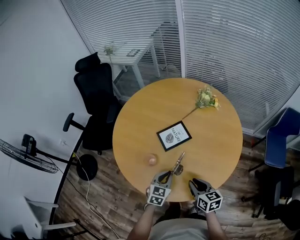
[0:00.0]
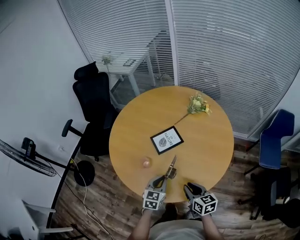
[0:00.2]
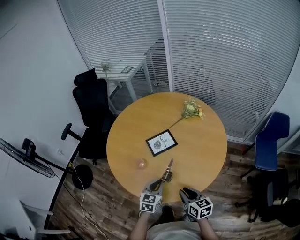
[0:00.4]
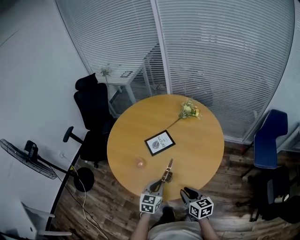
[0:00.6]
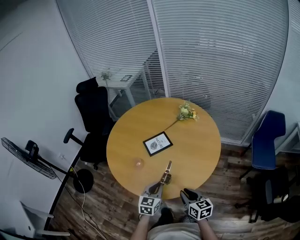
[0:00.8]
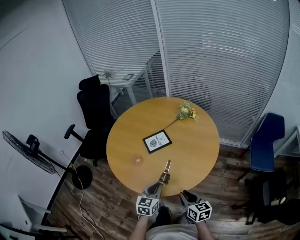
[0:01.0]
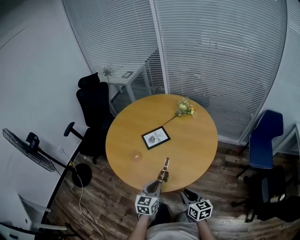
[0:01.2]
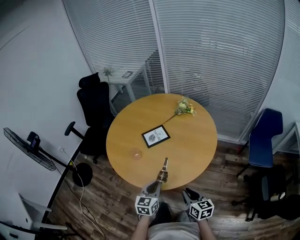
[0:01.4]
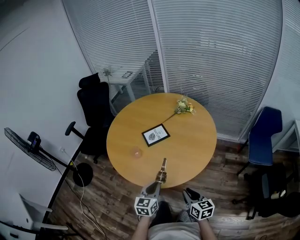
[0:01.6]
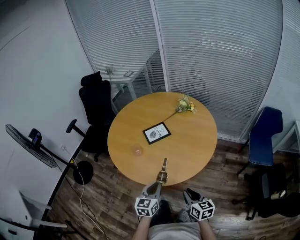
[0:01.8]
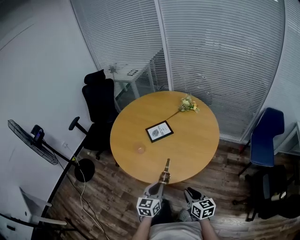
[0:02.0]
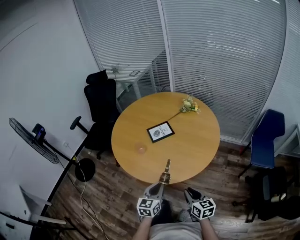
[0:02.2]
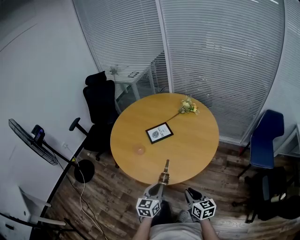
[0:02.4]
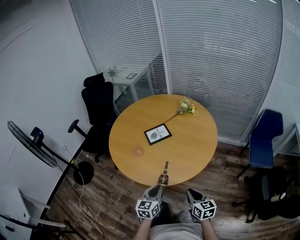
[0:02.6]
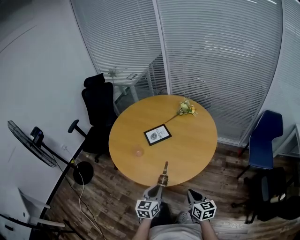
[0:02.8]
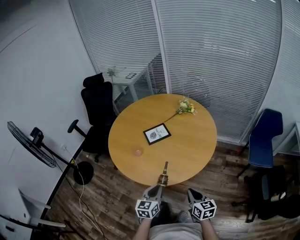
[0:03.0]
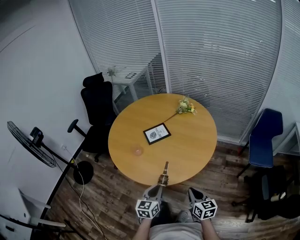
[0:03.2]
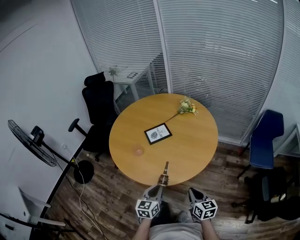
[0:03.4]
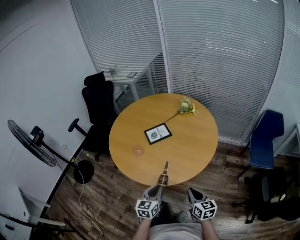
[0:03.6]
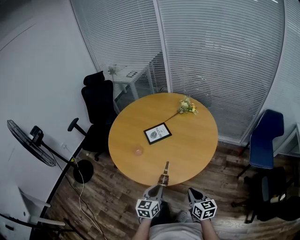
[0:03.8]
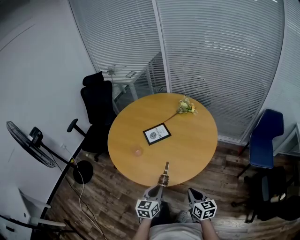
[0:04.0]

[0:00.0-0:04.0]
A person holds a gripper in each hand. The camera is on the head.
0:00.0 to 0:01.4: The left gripper moves backward and upward, roughly 20 cm; the right gripper goes some 20 cm backward and to the right.
0:01.4 to 0:02.6: The left gripper heads backward, covering approximately 5 cm.
0:02.6 to 0:04.0: The grippers move only a little.

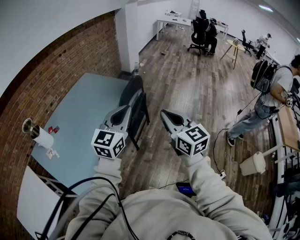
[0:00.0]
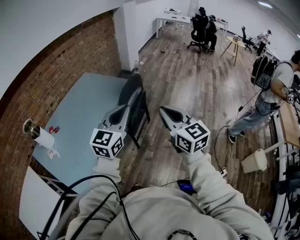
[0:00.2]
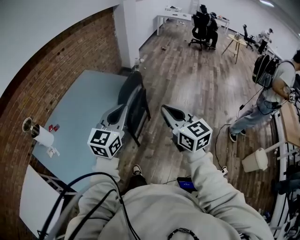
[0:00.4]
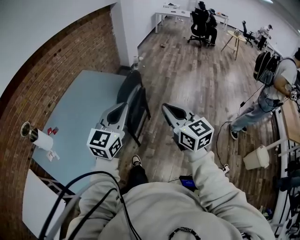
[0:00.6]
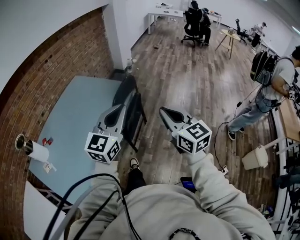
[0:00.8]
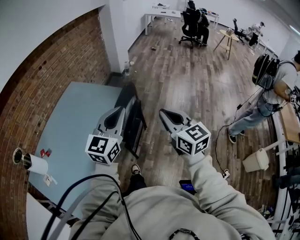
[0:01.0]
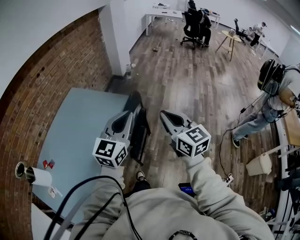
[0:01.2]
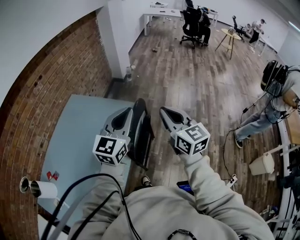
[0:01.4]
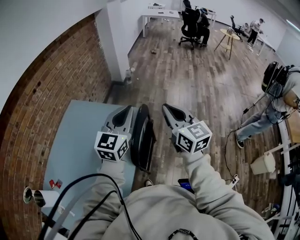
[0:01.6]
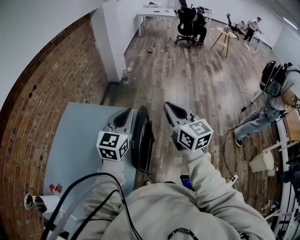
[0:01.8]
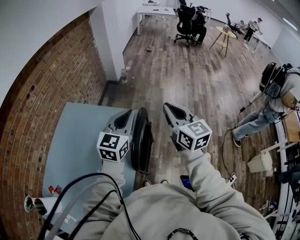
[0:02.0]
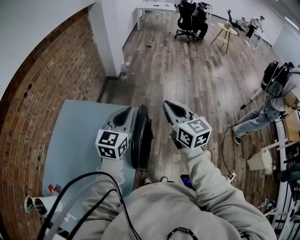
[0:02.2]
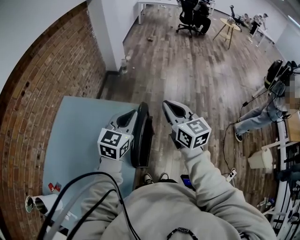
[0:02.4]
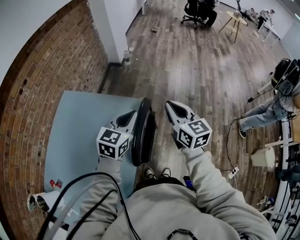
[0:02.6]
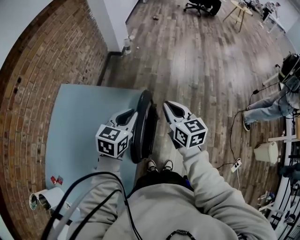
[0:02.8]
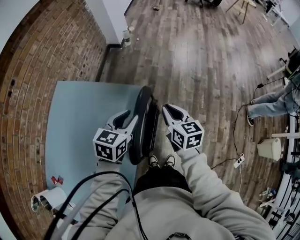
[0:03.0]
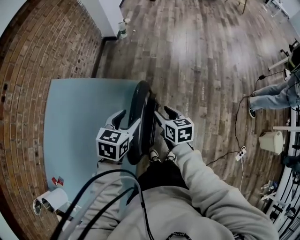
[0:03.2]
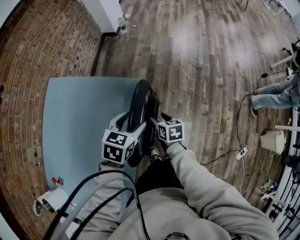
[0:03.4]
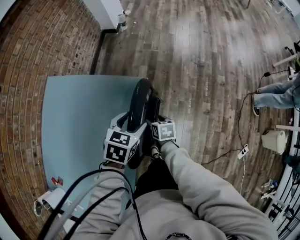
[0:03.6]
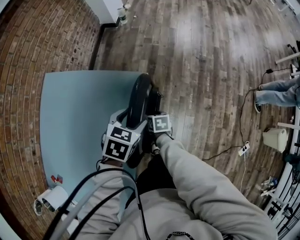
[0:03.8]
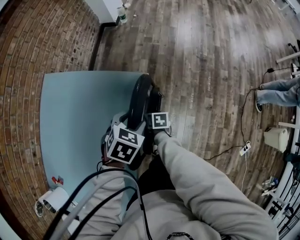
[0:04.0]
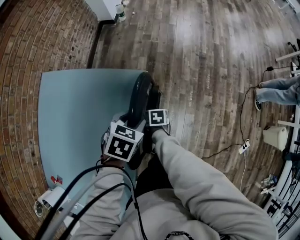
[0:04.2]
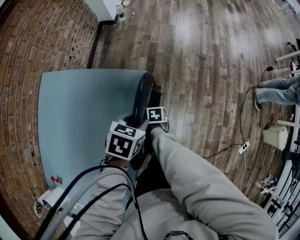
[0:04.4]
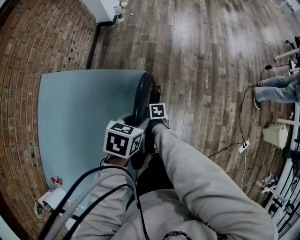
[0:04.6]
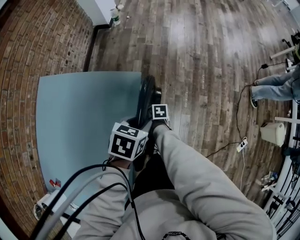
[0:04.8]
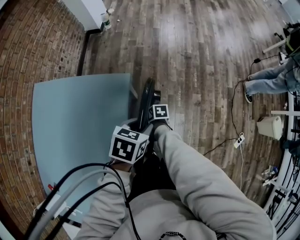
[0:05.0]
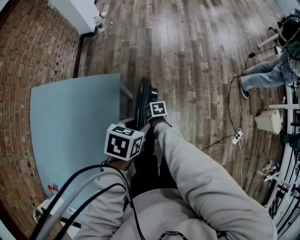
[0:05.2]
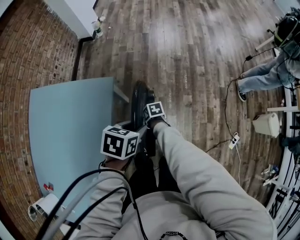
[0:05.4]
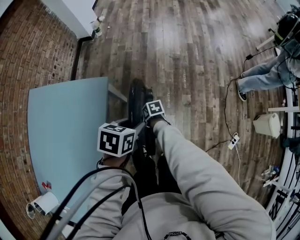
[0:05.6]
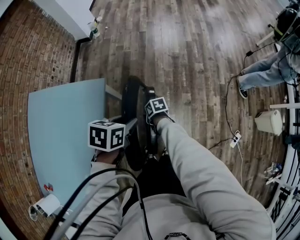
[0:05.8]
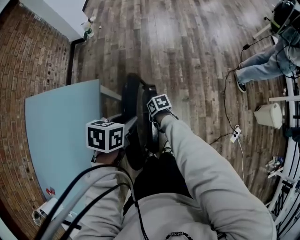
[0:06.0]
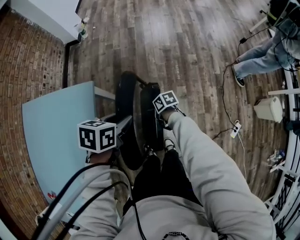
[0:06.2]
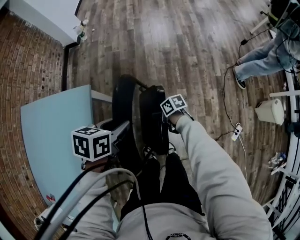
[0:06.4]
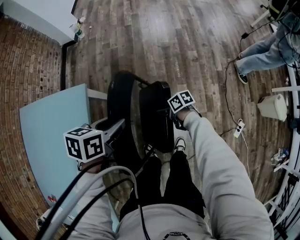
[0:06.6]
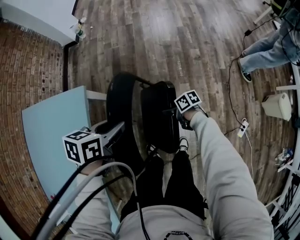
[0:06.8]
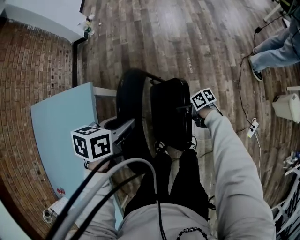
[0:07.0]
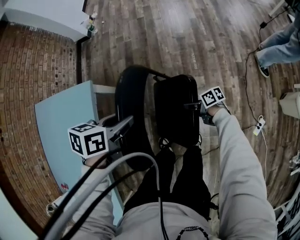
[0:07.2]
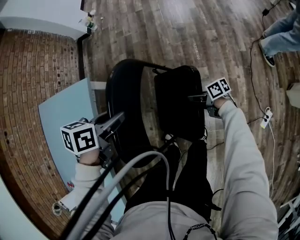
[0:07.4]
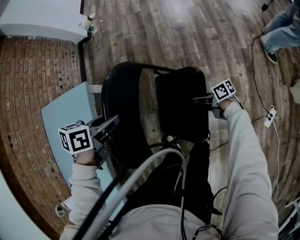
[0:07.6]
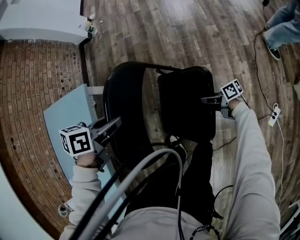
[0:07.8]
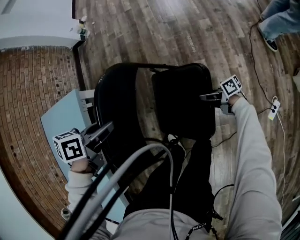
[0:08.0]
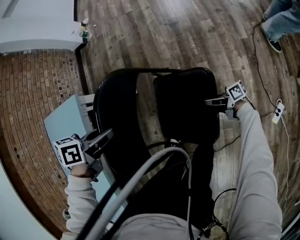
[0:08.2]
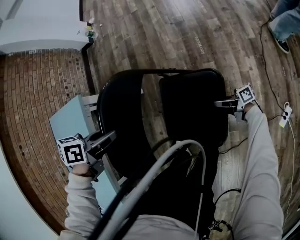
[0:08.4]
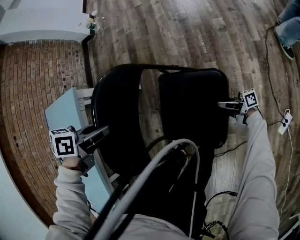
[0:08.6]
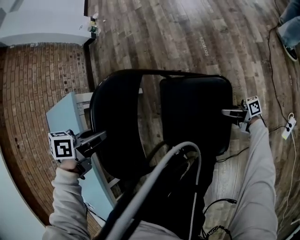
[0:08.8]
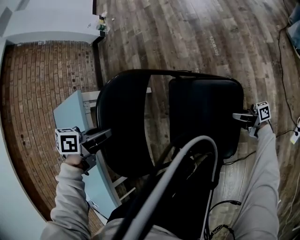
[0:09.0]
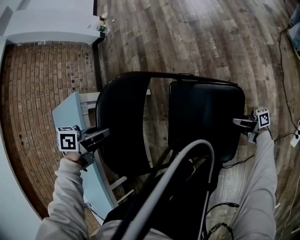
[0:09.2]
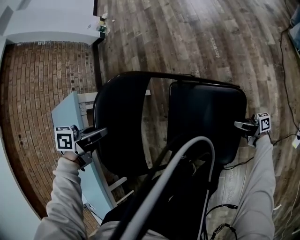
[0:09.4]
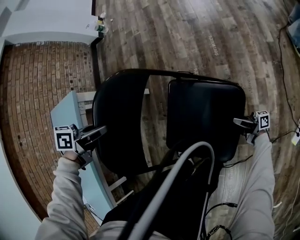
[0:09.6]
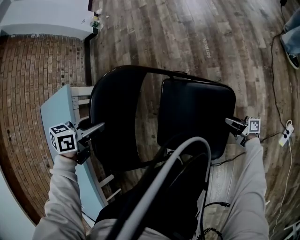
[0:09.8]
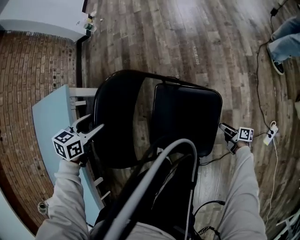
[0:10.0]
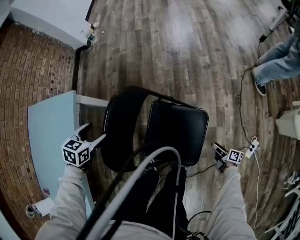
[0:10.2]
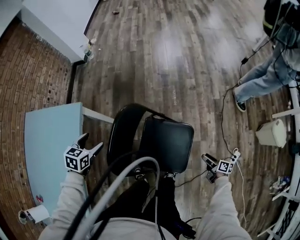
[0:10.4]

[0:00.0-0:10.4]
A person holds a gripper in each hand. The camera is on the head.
0:00.0 to 0:01.4: Both grippers travel together forward, roughly 35 cm.
0:01.4 to 0:03.0: The two grippers go approximately 30 cm downward and forward. The left gripper tilts its fingers some 30 degrees downward. Meanwhile the right gripper swivels roughly 30 degrees.
0:03.0 to 0:04.4: The left gripper is displaced downward by approximately 15 cm, turns by some 30 degrees, and opens, then closes again; the right gripper moves downward, approximately 35 cm, tips its fingers downward by about 40 degrees, and opens its fingers.
0:04.4 to 0:06.0: The left gripper shifts by some 20 cm; the right gripper ends up about 20 cm from where it was, and closes its fingers.
0:06.0 to 0:07.4: The left gripper changes place by some 10 cm; the right gripper ends up roughly 25 cm from where it was, and points its fingers approximately 30 degrees further upward.
0:07.4 to 0:09.0: The two grippers go roughly 15 cm downward. The right gripper points its fingers roughly 30 degrees further upward.
0:09.0 to 0:10.4: The right gripper heads upward, covering some 20 cm, points its fingers approximately 40 degrees further downward, and opens; the left gripper shifts by about 15 cm, changes its angle by approximately 40 degrees, and opens its fingers.

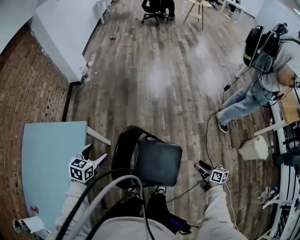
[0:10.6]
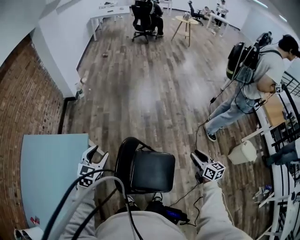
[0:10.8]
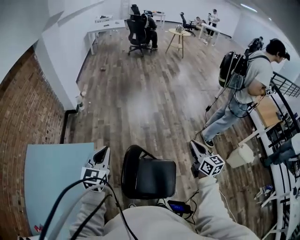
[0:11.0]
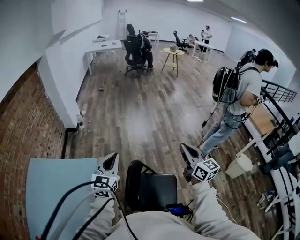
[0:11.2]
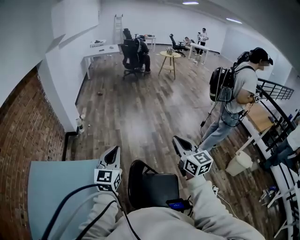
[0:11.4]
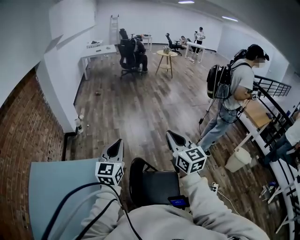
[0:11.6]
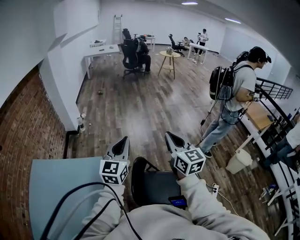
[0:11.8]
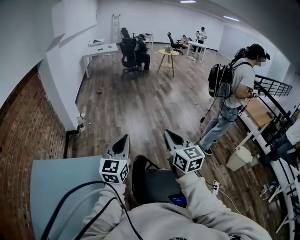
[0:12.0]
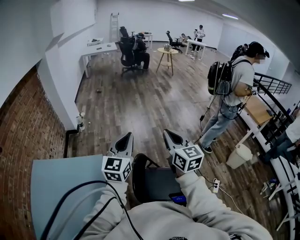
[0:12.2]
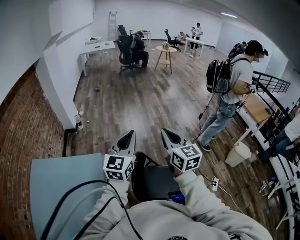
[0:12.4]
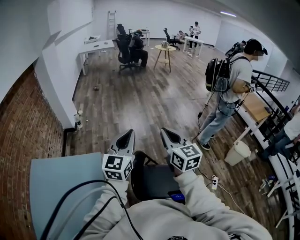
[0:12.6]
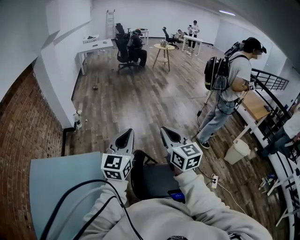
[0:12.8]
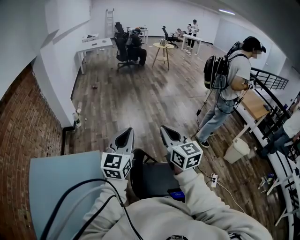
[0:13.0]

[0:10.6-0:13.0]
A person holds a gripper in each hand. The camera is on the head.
0:10.6 to 0:11.8: The left gripper shifts some 35 cm upward, points its fingers some 50 degrees further upward, and closes. Meanwhile the right gripper moves upward and to the left, approximately 60 cm, rotates some 60 degrees, and closes up.
0:11.8 to 0:13.0: There are only small adjustments of the grippers.

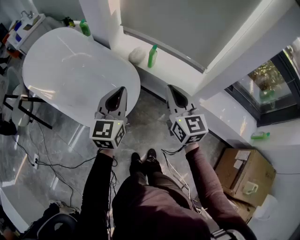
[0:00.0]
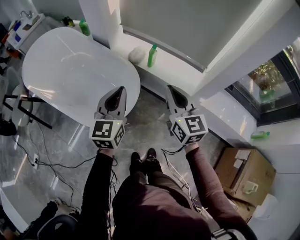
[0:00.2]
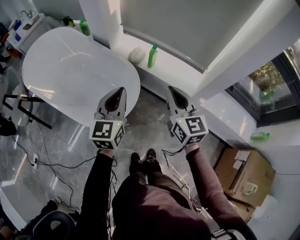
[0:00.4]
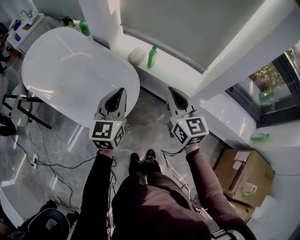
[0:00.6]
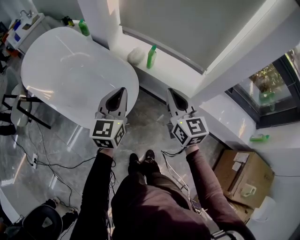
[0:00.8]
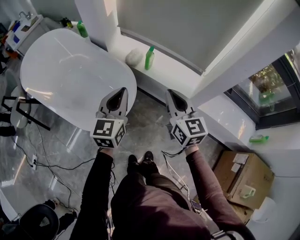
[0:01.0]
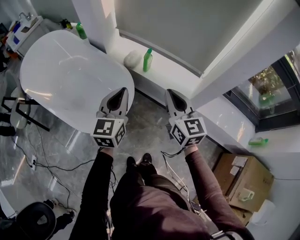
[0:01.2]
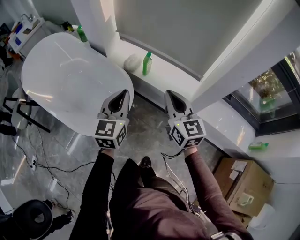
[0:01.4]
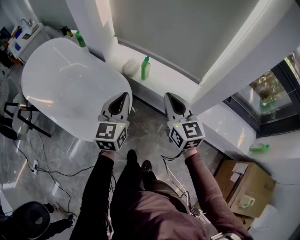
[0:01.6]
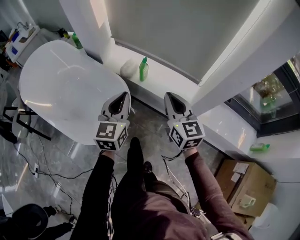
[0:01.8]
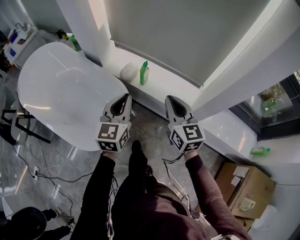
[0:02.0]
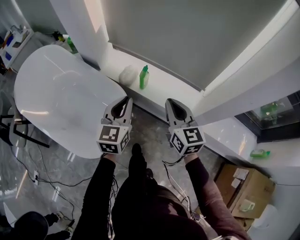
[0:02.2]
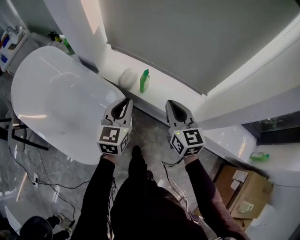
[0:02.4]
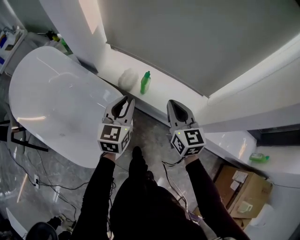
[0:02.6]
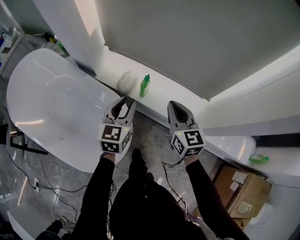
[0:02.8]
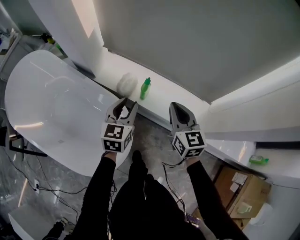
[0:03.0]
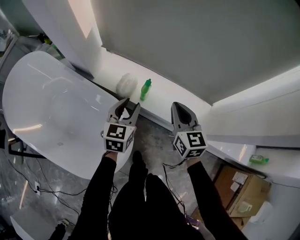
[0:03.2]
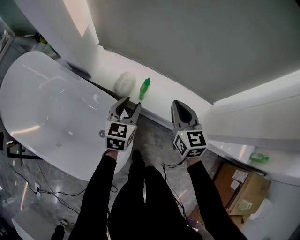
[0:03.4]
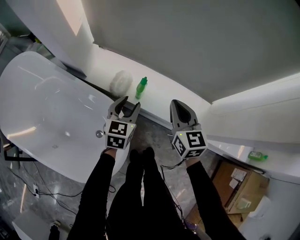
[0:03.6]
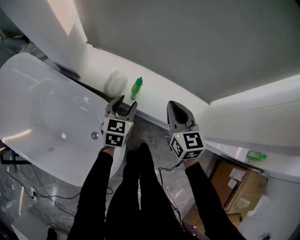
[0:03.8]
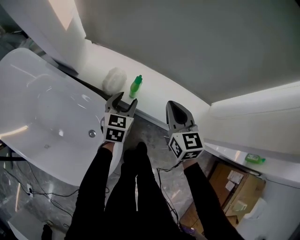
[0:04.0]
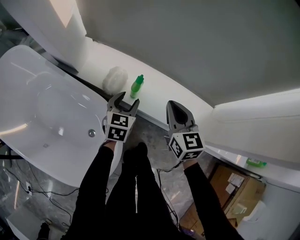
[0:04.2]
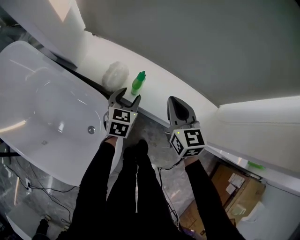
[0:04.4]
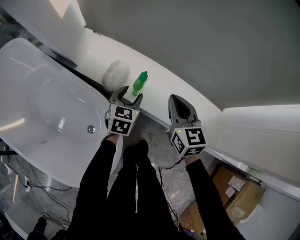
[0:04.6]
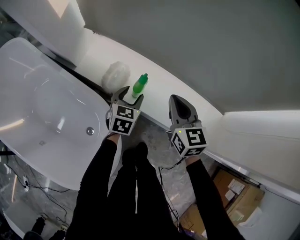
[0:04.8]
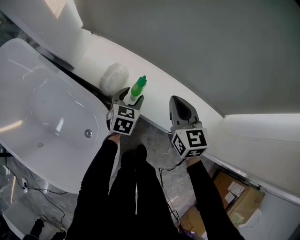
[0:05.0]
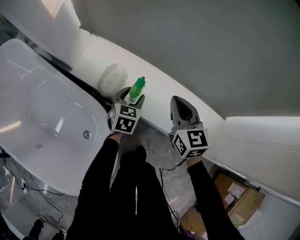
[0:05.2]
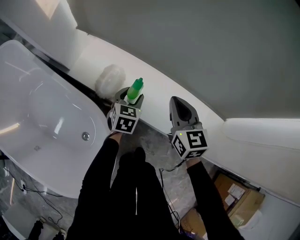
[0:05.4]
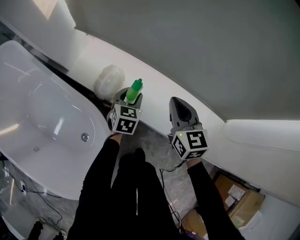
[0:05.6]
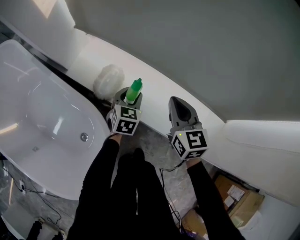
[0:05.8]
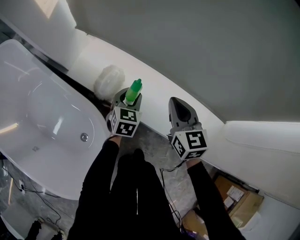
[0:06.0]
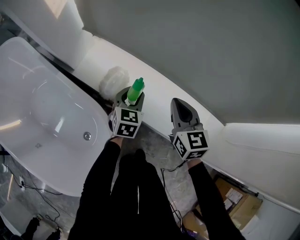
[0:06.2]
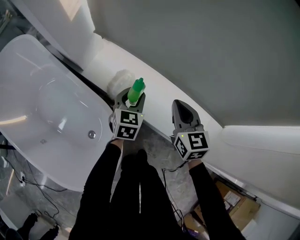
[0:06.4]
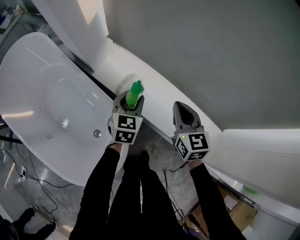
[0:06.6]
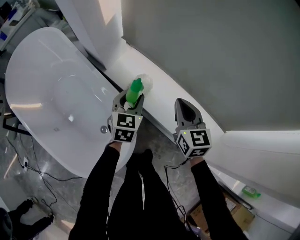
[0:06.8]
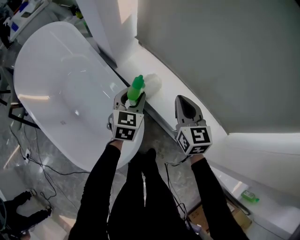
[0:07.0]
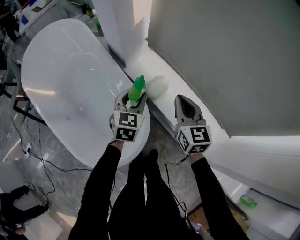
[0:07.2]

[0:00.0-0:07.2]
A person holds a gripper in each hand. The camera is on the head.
0:00.0 to 0:01.4: Both grippers move to the right, roughly 5 cm.
0:01.4 to 0:02.8: The grippers both shift forward by approximately 20 cm. The left gripper opens its fingers.
0:02.8 to 0:04.4: The left gripper goes roughly 25 cm downward and forward, and opens up. Meanwhile the right gripper heads downward and forward, covering about 15 cm.
0:04.4 to 0:05.8: Both grippers move downward and forward, some 10 cm.
0:05.8 to 0:07.2: The grippers both shift upward and to the left by roughly 30 cm. The left gripper rotates some 20 degrees.
